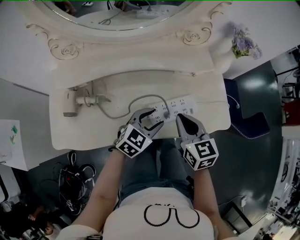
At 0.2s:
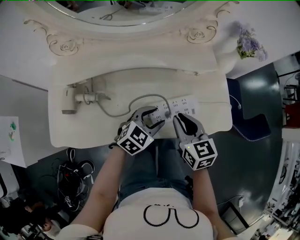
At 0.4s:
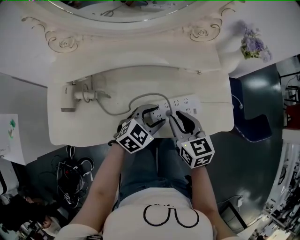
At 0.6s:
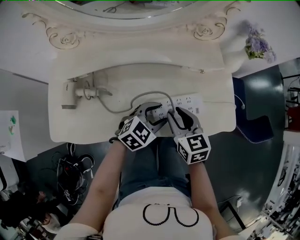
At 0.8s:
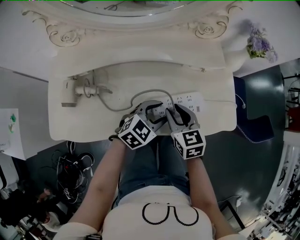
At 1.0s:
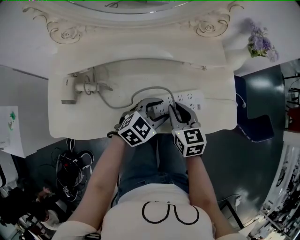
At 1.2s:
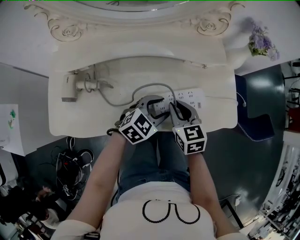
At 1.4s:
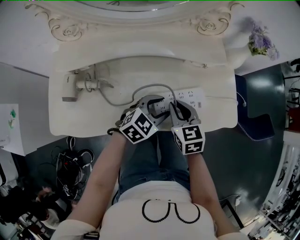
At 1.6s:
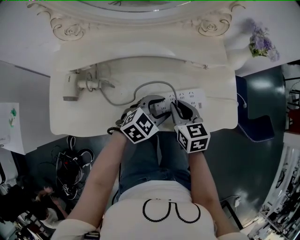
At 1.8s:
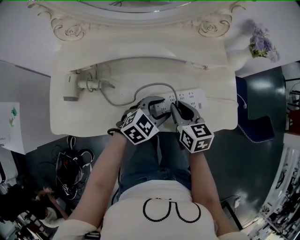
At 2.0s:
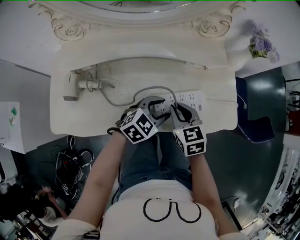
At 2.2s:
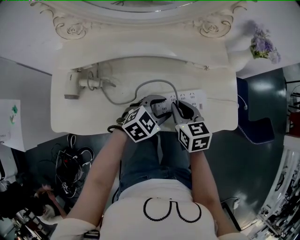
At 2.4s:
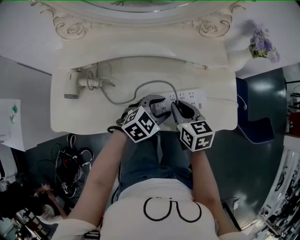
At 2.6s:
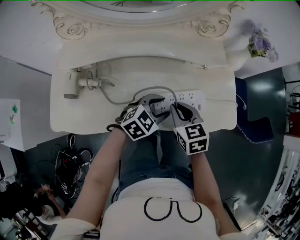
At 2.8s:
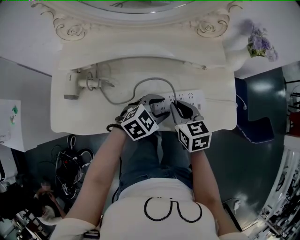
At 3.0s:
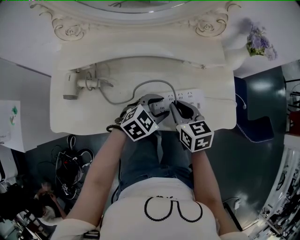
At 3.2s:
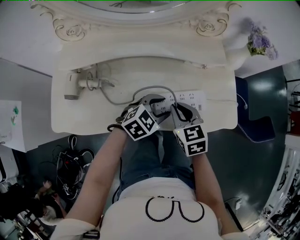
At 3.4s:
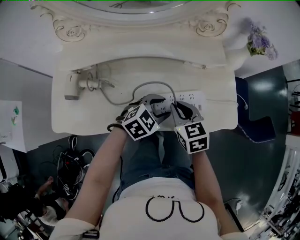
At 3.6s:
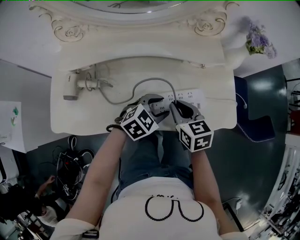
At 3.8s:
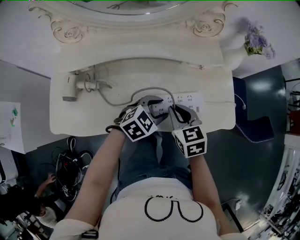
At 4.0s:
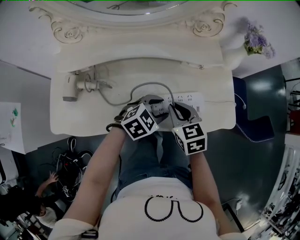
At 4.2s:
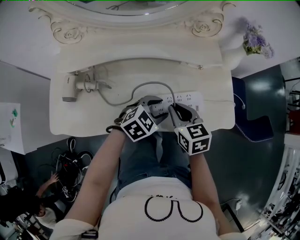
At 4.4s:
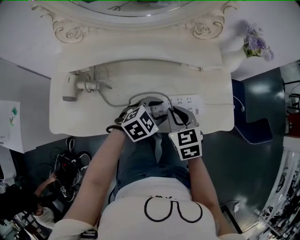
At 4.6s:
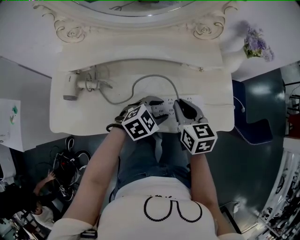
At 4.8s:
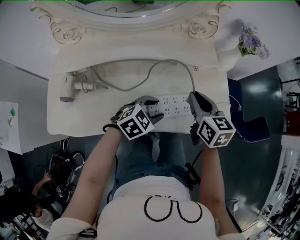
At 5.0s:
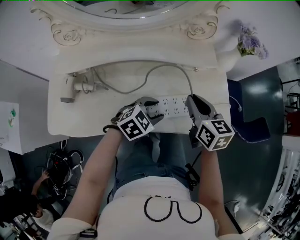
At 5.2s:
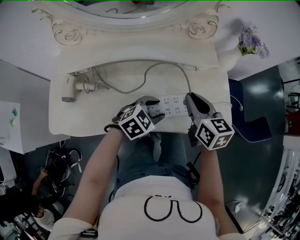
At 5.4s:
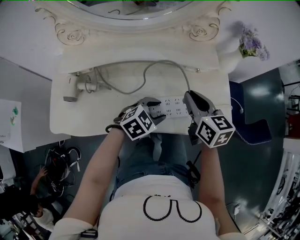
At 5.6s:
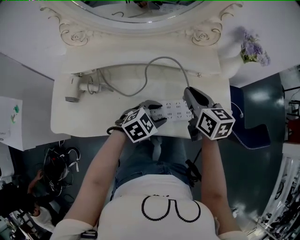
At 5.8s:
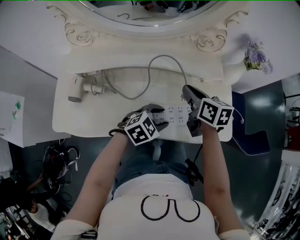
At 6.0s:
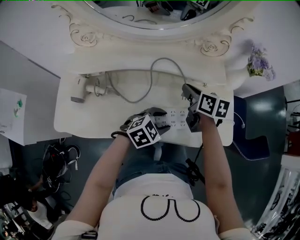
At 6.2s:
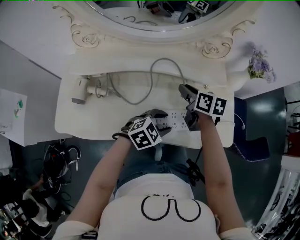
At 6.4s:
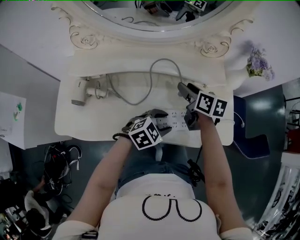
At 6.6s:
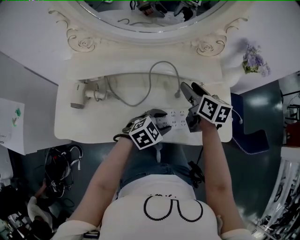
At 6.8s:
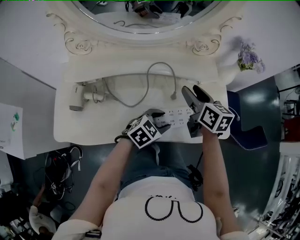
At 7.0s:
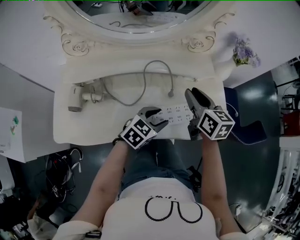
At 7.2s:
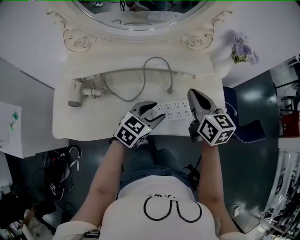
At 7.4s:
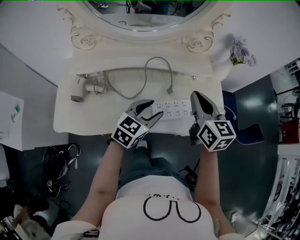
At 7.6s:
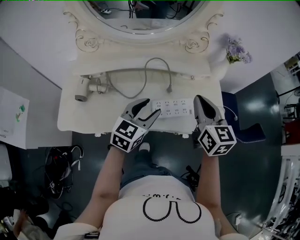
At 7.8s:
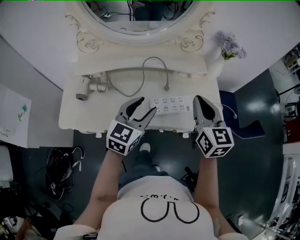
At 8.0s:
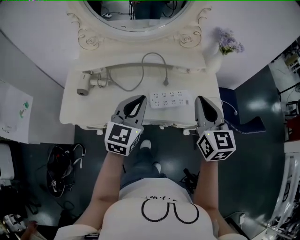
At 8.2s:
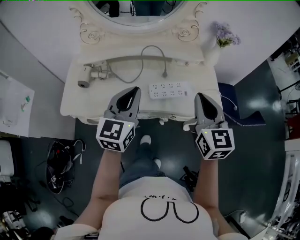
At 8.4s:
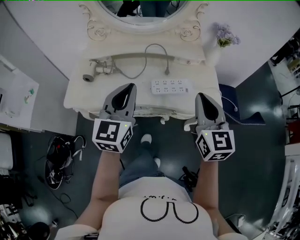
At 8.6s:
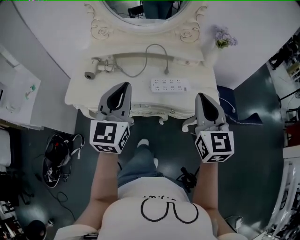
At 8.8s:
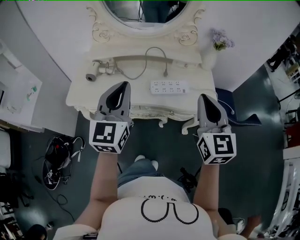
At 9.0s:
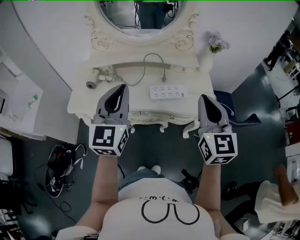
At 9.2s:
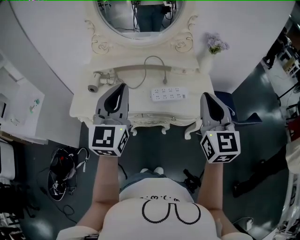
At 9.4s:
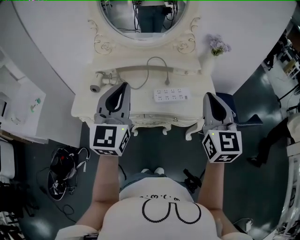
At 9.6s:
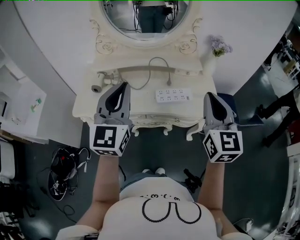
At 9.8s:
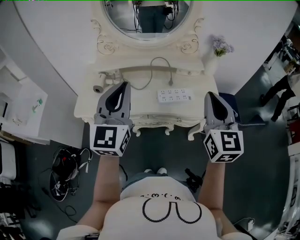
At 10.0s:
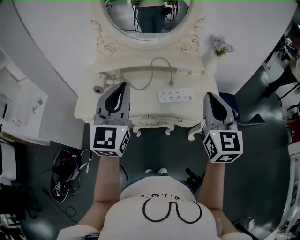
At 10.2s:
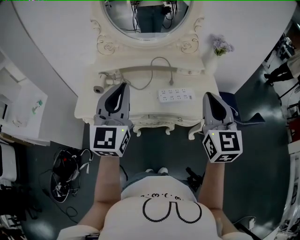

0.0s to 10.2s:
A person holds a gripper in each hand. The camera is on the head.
0.0s to 1.4s: The right gripper moves downward, approximately 10 cm.
1.4s to 4.4s: There are only small adjustments of the grippers.
4.4s to 5.8s: The right gripper is displaced forward by about 15 cm, and turns by about 30 degrees.
5.8s to 7.2s: The grippers both shift upward by about 10 cm. The right gripper changes its angle by about 20 degrees, and opens and closes again. Meanwhile the left gripper changes its angle by about 20 degrees.
7.2s to 8.8s: The left gripper shifts about 30 cm upward and backward, turns by about 50 degrees, and closes. The right gripper heads backward and upward, covering some 30 cm, and swivels roughly 30 degrees.
8.8s to 10.2s: The left gripper ends up some 5 cm from where it was.

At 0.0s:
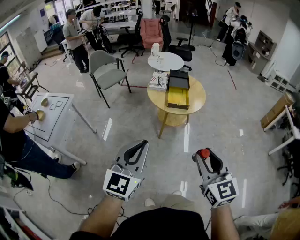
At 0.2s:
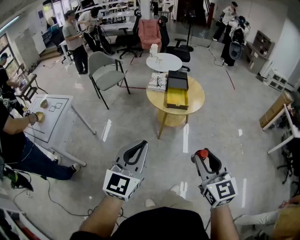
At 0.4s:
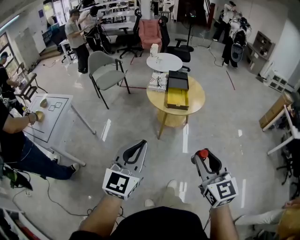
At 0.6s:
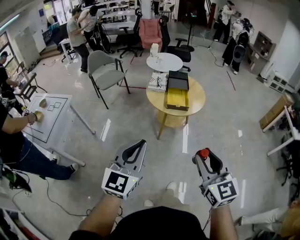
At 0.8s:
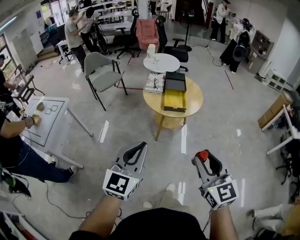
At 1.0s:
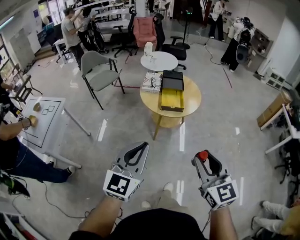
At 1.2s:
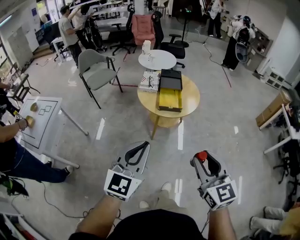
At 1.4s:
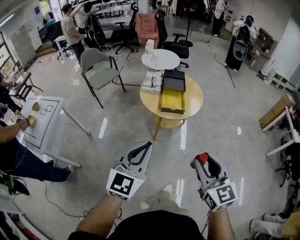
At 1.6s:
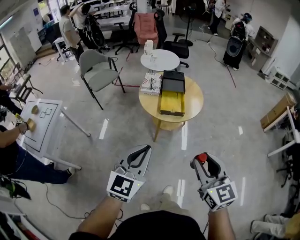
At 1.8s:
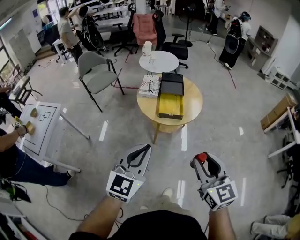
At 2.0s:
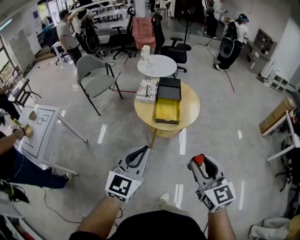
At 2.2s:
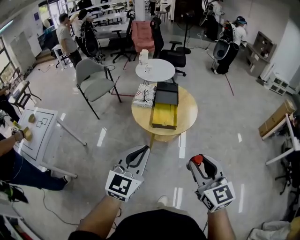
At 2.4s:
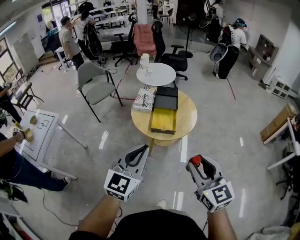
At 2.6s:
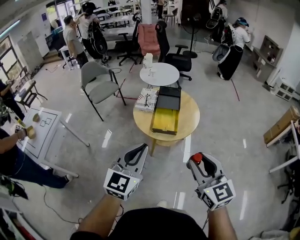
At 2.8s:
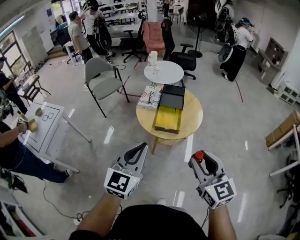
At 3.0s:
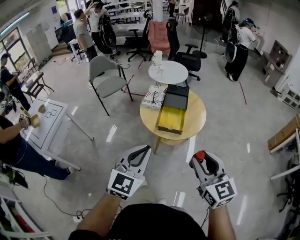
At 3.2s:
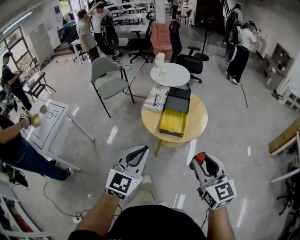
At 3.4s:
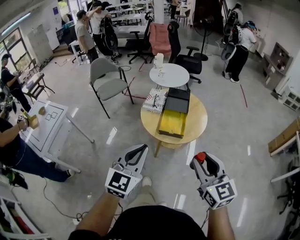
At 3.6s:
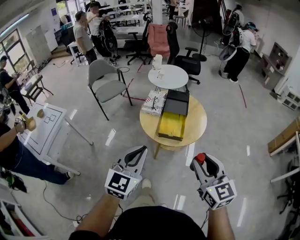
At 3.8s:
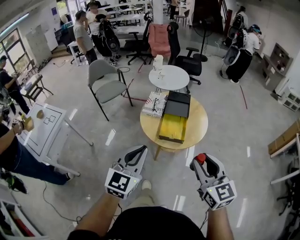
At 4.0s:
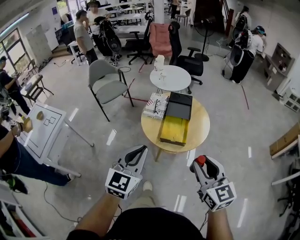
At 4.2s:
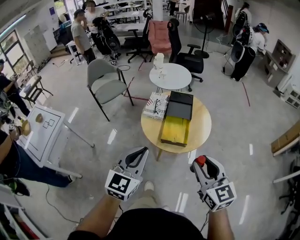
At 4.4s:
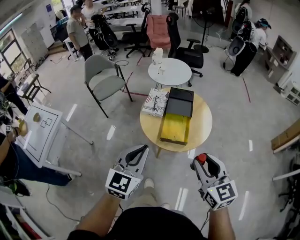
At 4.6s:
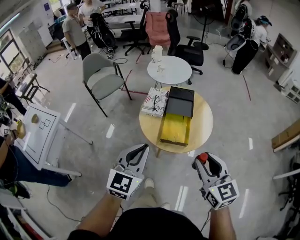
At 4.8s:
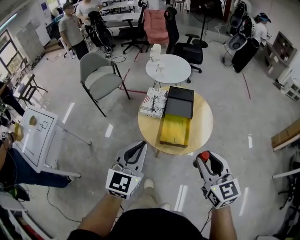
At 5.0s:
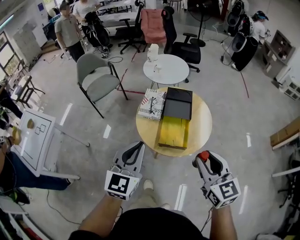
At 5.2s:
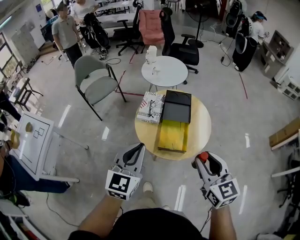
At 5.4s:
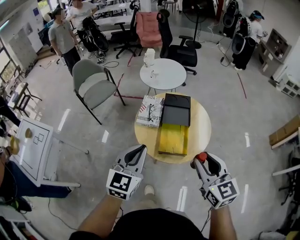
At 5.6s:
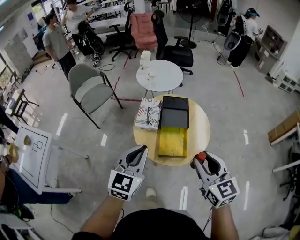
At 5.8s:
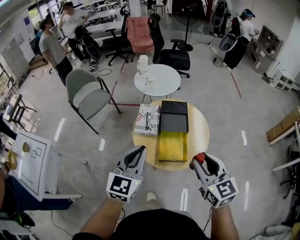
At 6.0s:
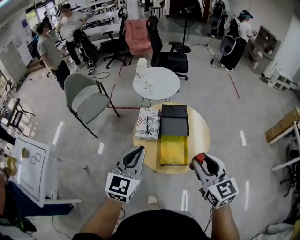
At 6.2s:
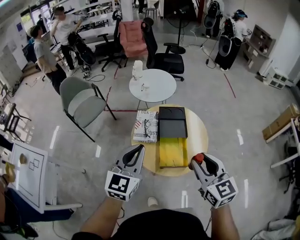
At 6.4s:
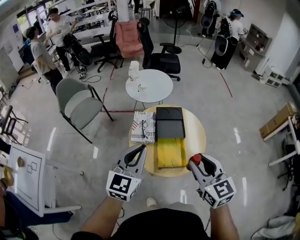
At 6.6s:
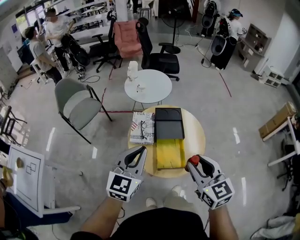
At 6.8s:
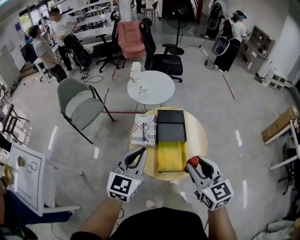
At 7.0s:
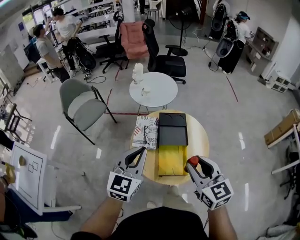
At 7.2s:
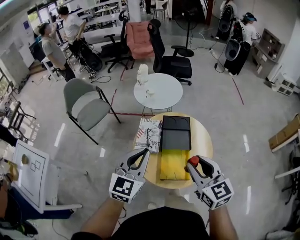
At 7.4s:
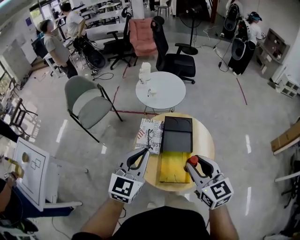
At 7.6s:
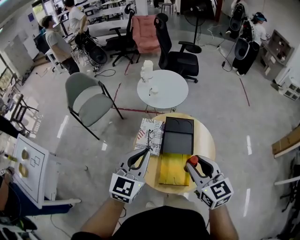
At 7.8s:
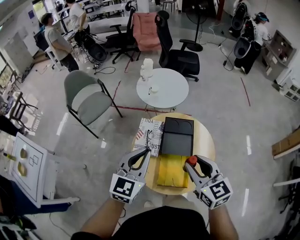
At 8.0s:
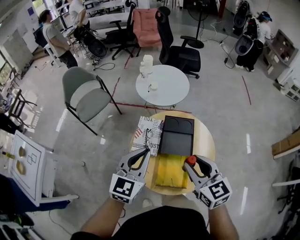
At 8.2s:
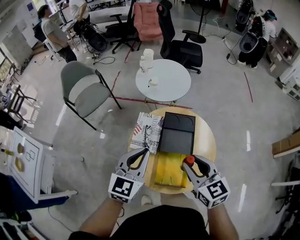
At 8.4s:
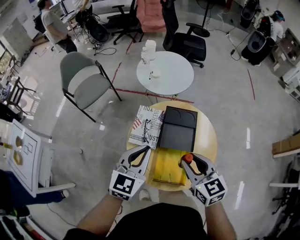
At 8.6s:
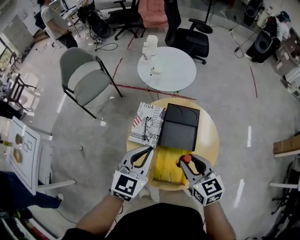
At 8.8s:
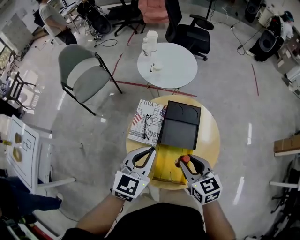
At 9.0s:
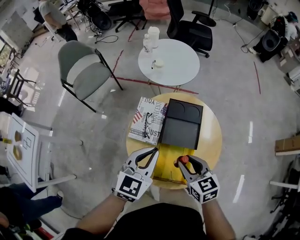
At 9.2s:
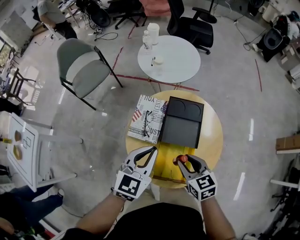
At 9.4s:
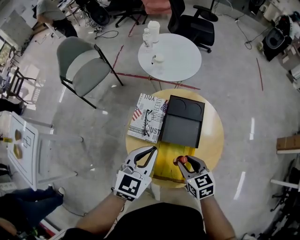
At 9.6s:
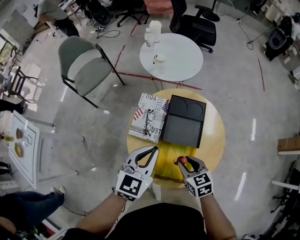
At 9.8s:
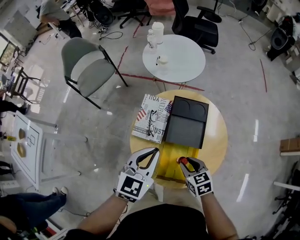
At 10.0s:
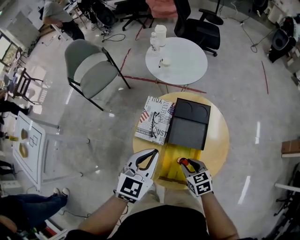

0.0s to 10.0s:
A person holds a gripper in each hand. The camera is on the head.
0.0s to 1.4s: The left gripper heads forward and to the right, covering some 10 cm. Meanwhile the right gripper shifts roughly 10 cm forward.
1.4s to 2.8s: Both grippers move forward and to the right, about 15 cm.
2.8s to 4.2s: The two grippers go about 10 cm forward.
4.2s to 5.8s: The two grippers go roughly 20 cm forward.
5.8s to 7.2s: Both grippers travel together forward, roughly 10 cm.
7.2s to 8.6s: The grippers both shift downward and forward by about 15 cm.
8.6s to 10.0s: The right gripper shifts about 15 cm downward, and turns by roughly 20 degrees.

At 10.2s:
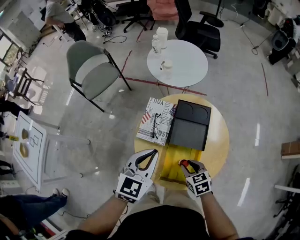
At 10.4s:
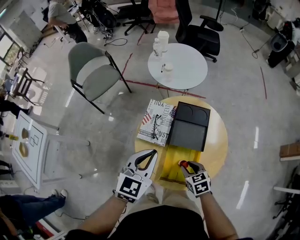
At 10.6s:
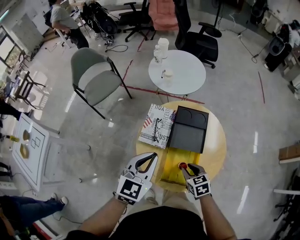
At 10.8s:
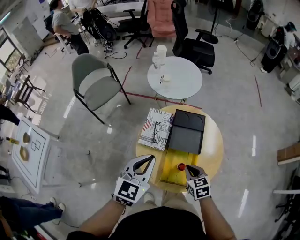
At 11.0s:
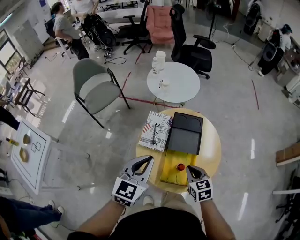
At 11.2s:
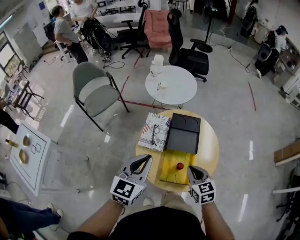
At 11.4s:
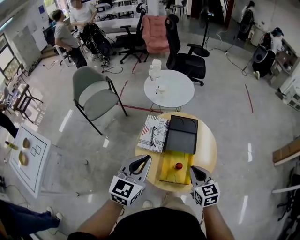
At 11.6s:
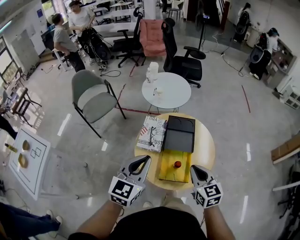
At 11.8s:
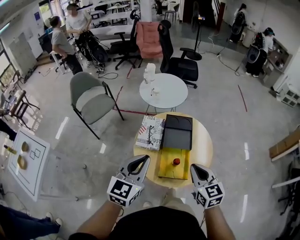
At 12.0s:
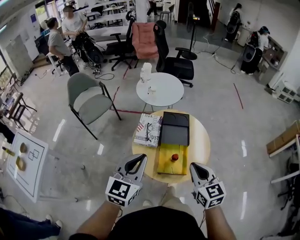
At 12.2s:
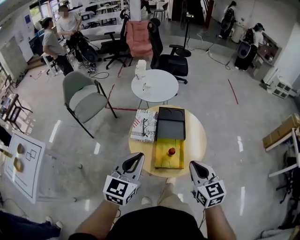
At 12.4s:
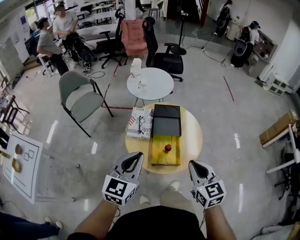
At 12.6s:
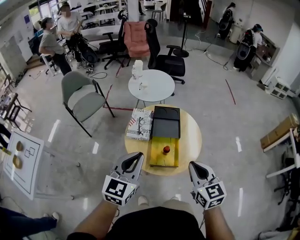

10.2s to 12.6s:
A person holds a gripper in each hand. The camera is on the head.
10.2s to 11.4s: The left gripper heads upward and backward, covering some 15 cm. Meanwhile the right gripper moves upward, roughly 20 cm, swivels about 30 degrees, and closes its fingers.
11.4s to 12.6s: The right gripper goes some 15 cm backward and upward, while the left gripper moves backward, about 10 cm.

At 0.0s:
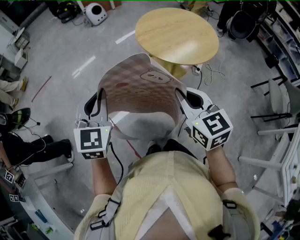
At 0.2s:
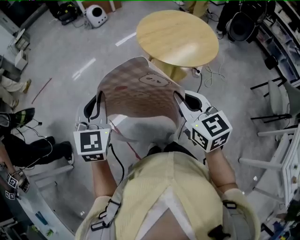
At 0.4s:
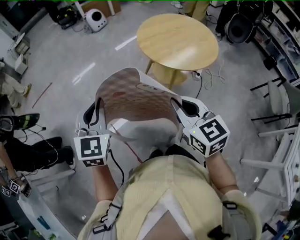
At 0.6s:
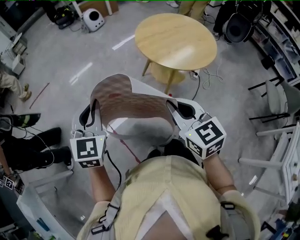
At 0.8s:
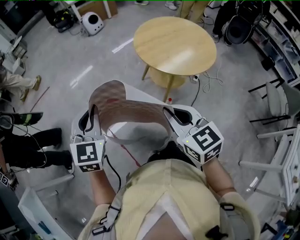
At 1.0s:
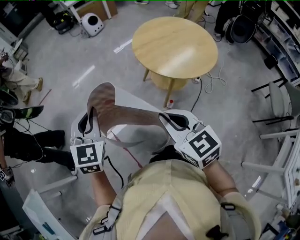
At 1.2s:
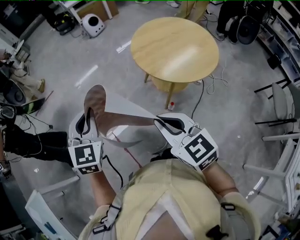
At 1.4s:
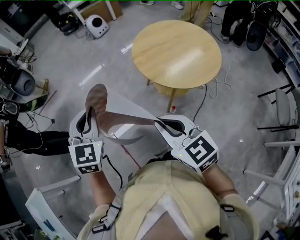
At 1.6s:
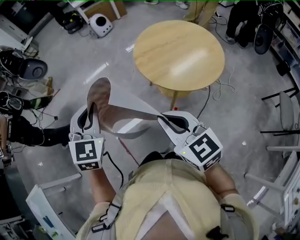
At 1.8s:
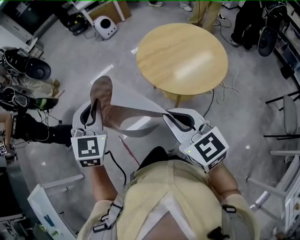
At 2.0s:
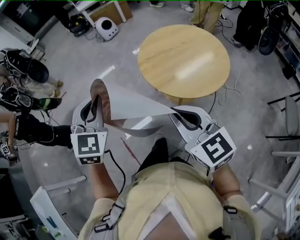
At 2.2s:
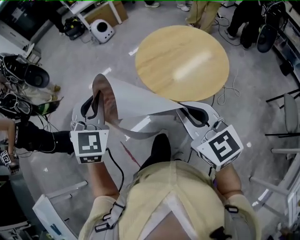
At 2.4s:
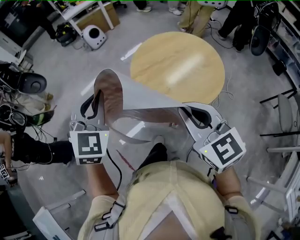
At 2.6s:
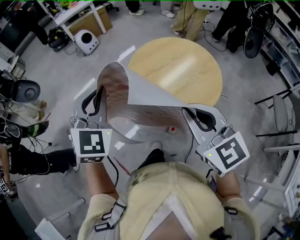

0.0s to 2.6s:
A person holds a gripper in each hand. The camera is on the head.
0.0s to 1.2s: The left gripper travels forward by some 5 cm; the right gripper ends up roughly 5 cm from where it was.
1.2s to 2.6s: The left gripper shifts approximately 25 cm forward and to the right, and rotates roughly 20 degrees. The right gripper is displaced forward, to the right and upward by about 25 cm.
